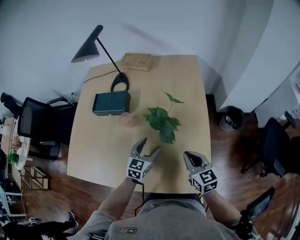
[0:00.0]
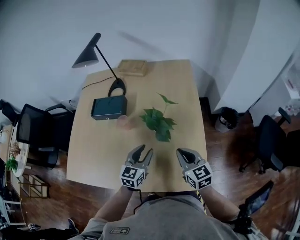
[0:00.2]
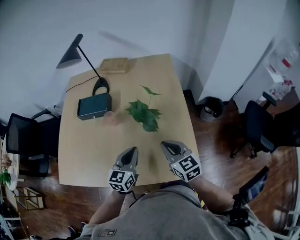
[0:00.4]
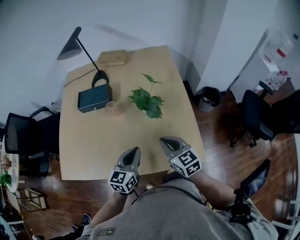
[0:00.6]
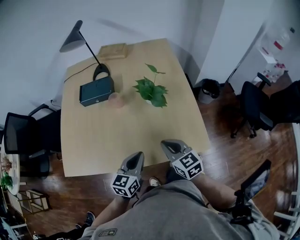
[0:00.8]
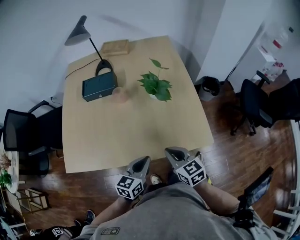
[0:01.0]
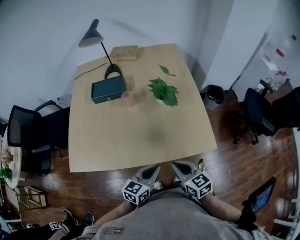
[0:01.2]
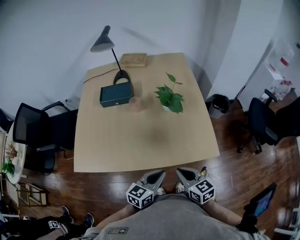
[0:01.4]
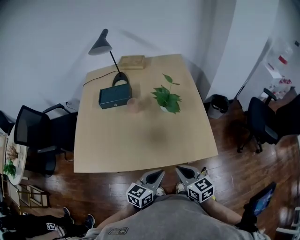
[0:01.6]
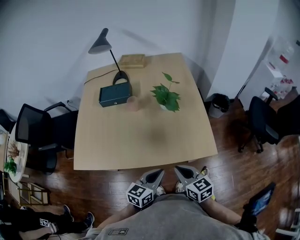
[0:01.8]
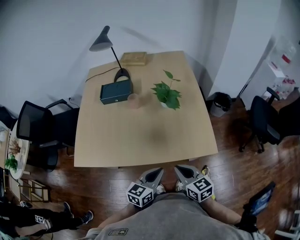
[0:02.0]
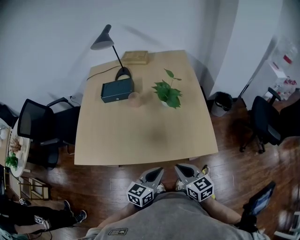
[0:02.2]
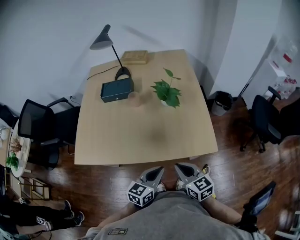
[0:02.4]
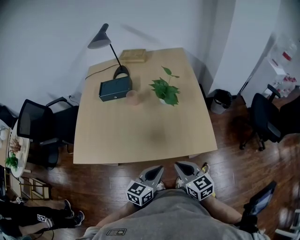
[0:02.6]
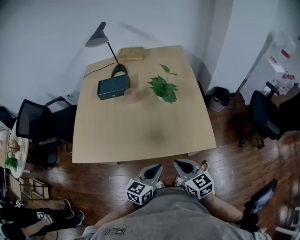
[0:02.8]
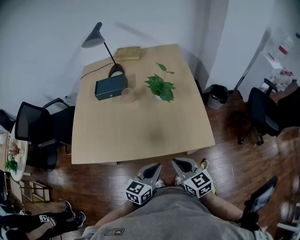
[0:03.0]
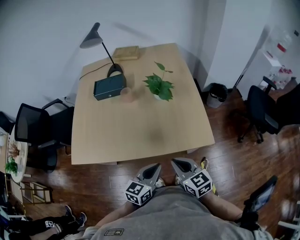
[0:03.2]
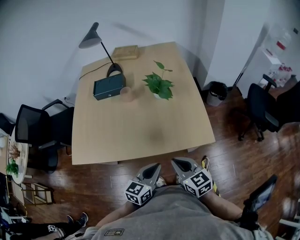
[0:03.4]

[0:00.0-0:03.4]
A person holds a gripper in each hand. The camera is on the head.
0:00.0 to 0:01.6: The right gripper heads backward and to the left, covering some 25 cm. The left gripper goes approximately 30 cm backward, rotates some 30 degrees, and closes.
0:01.6 to 0:03.4: The grippers move only a little.

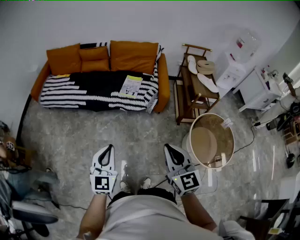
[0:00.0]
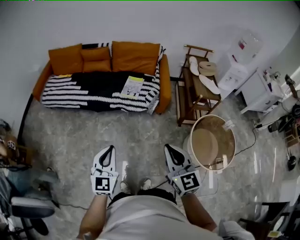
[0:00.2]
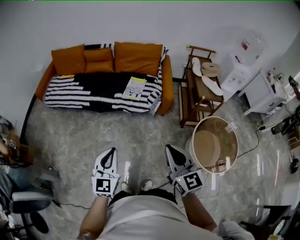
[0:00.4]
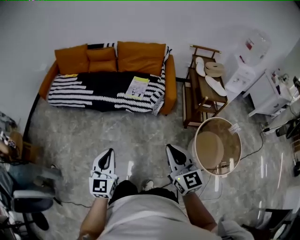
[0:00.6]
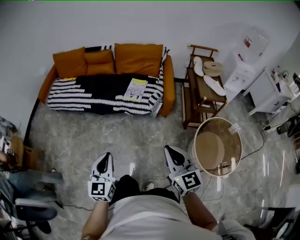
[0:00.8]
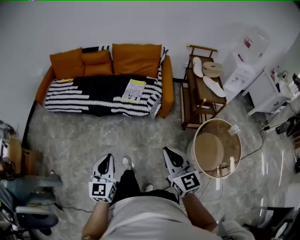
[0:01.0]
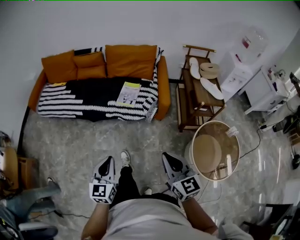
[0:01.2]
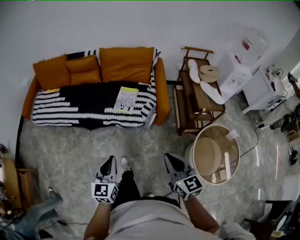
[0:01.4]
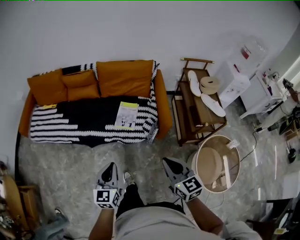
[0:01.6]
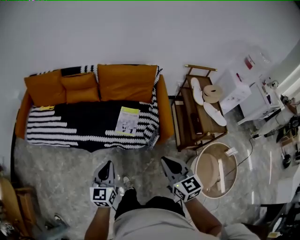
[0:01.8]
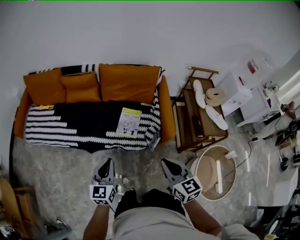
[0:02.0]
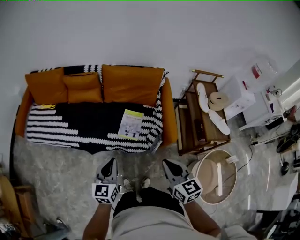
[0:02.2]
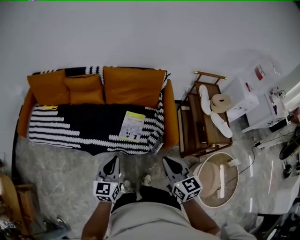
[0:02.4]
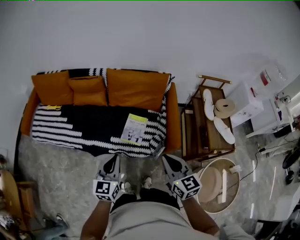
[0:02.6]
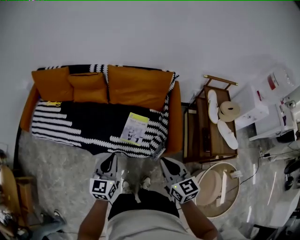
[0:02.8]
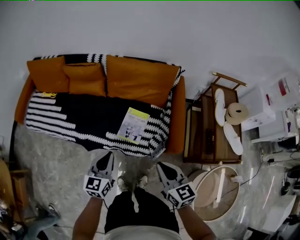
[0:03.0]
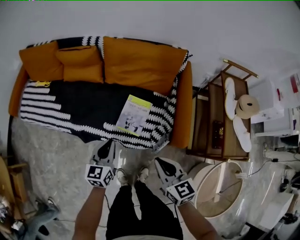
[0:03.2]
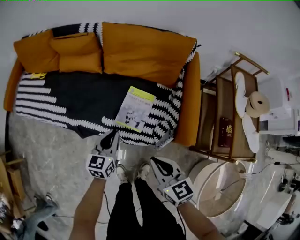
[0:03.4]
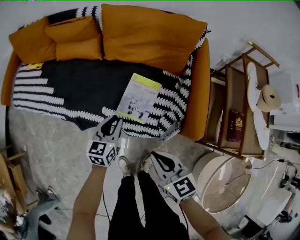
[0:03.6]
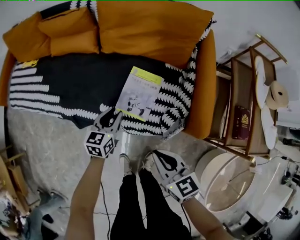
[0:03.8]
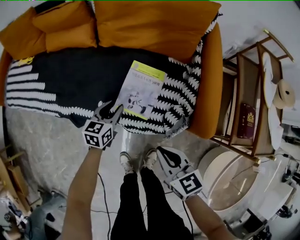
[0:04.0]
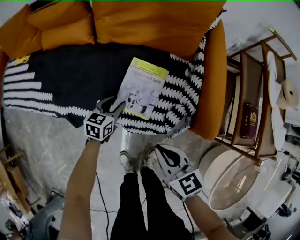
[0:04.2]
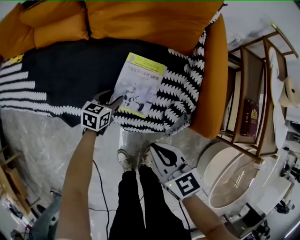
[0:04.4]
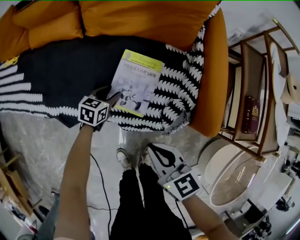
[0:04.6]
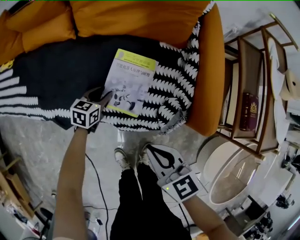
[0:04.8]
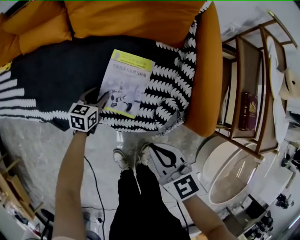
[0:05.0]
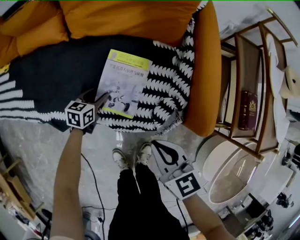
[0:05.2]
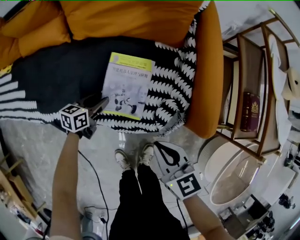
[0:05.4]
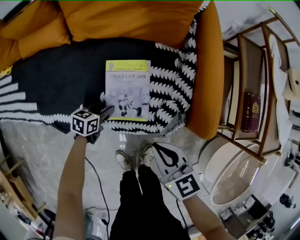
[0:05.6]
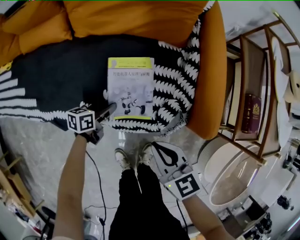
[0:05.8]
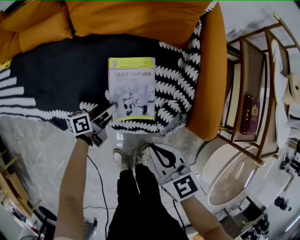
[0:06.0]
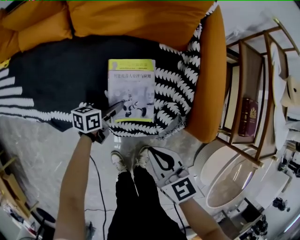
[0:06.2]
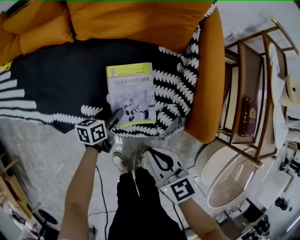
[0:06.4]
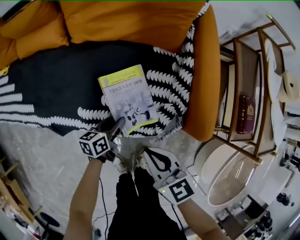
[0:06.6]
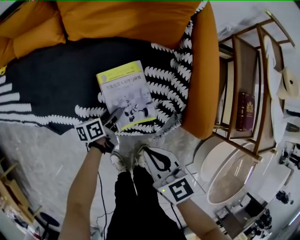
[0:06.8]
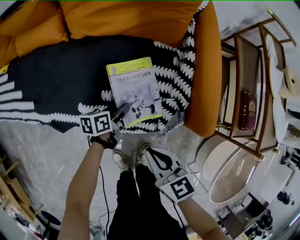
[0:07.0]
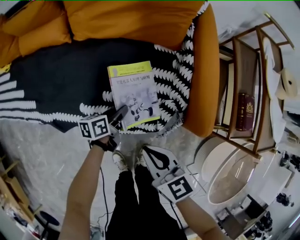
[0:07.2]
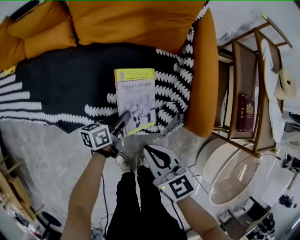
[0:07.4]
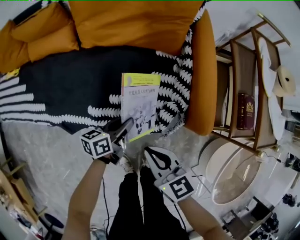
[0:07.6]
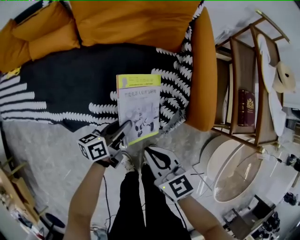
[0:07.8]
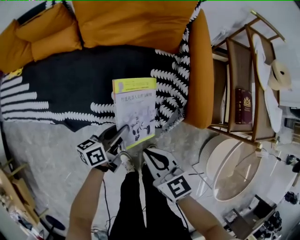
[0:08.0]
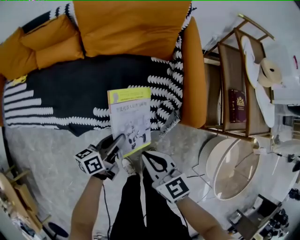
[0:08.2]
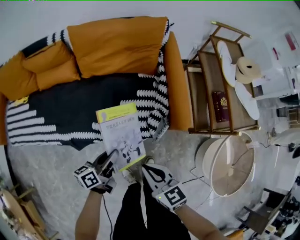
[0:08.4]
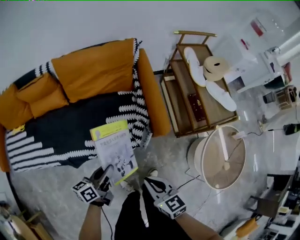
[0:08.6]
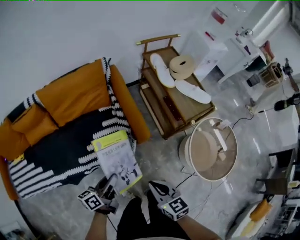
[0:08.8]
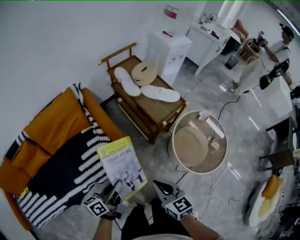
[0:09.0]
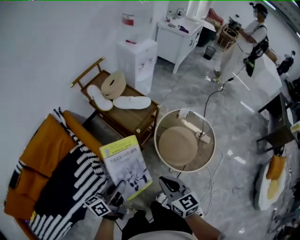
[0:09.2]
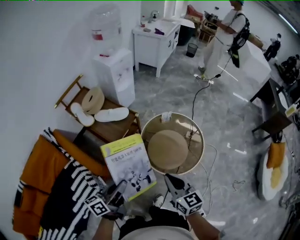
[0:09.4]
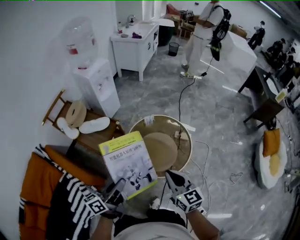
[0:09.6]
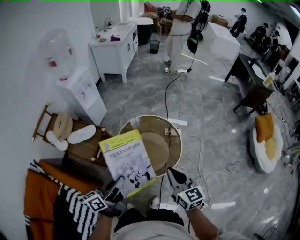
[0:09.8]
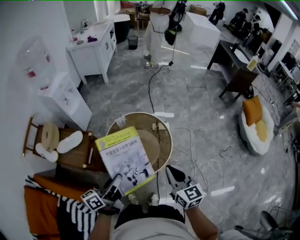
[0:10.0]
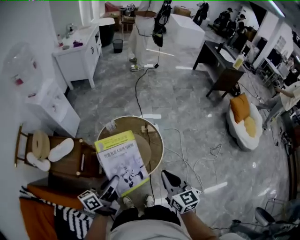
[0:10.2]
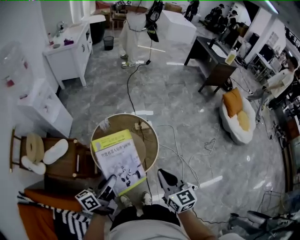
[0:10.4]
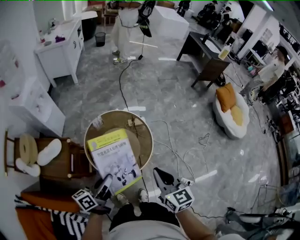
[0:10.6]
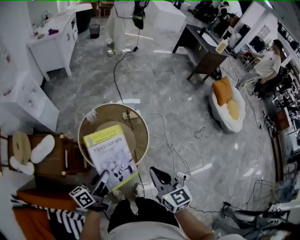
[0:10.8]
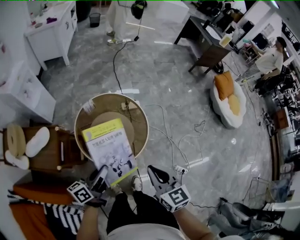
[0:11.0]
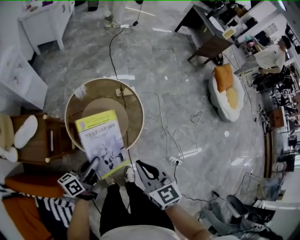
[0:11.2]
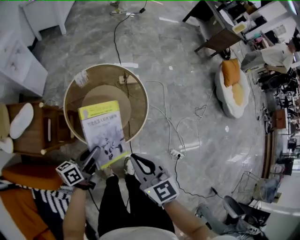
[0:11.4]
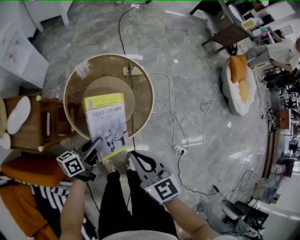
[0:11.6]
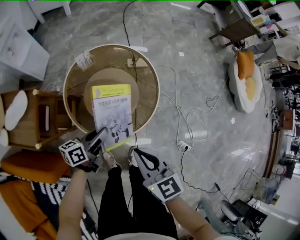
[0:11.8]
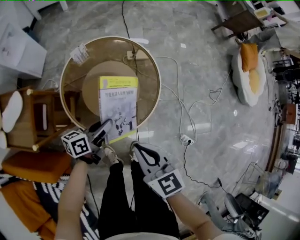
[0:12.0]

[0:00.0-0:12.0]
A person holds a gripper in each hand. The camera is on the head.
0:00.0 to 0:01.6: The two grippers go approximately 30 cm forward.
0:01.6 to 0:03.0: The grippers both shift forward by roughly 25 cm.
0:03.0 to 0:04.4: The right gripper is displaced downward by some 30 cm, while the left gripper shifts some 50 cm downward and forward, rotates approximately 30 degrees, and opens its fingers.
0:04.4 to 0:06.0: The left gripper changes its angle by roughly 40 degrees.
0:06.0 to 0:07.6: The right gripper changes place by some 5 cm, while the left gripper travels upward and to the right by roughly 10 cm.
0:07.6 to 0:09.0: The left gripper moves upward, approximately 35 cm, and rotates approximately 30 degrees; the right gripper shifts by some 40 cm, and turns by roughly 40 degrees.
0:09.0 to 0:10.4: The pair of grippers is taken some 50 cm. The left gripper changes its angle by some 50 degrees; the right gripper turns by about 60 degrees.
0:10.4 to 0:12.0: Both grippers travel together downward, about 25 cm. The left gripper changes its angle by roughly 20 degrees.

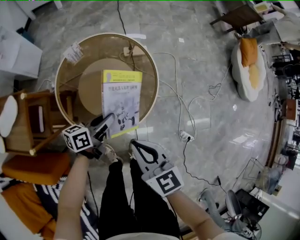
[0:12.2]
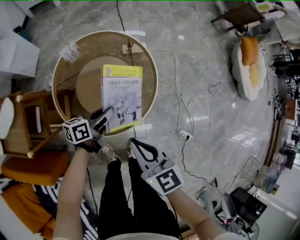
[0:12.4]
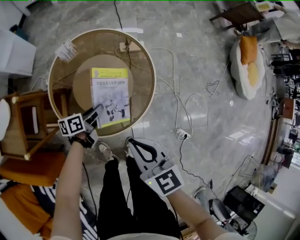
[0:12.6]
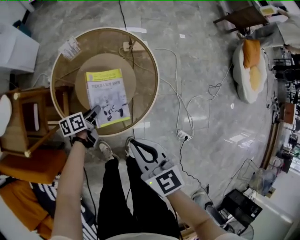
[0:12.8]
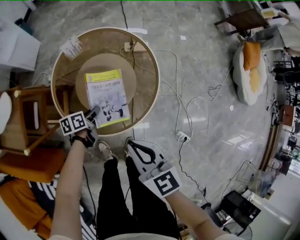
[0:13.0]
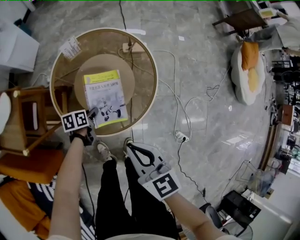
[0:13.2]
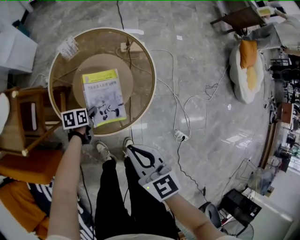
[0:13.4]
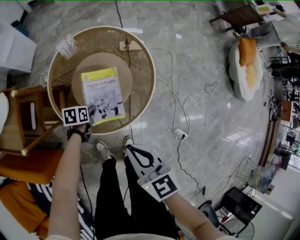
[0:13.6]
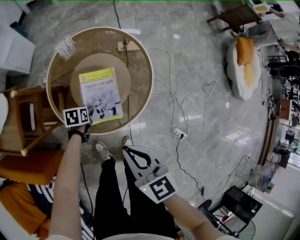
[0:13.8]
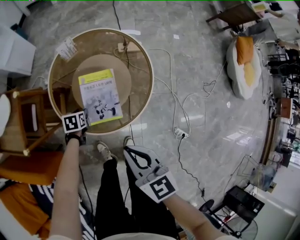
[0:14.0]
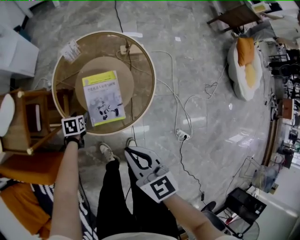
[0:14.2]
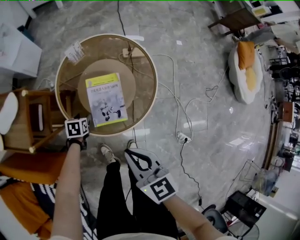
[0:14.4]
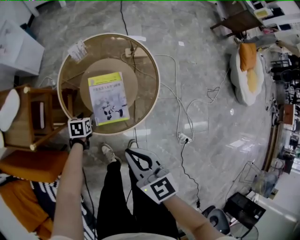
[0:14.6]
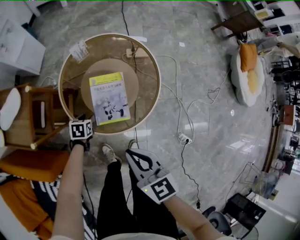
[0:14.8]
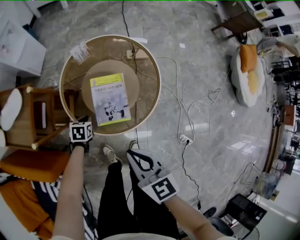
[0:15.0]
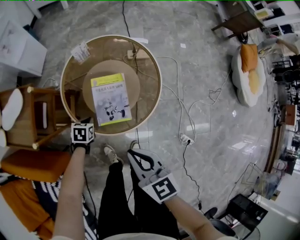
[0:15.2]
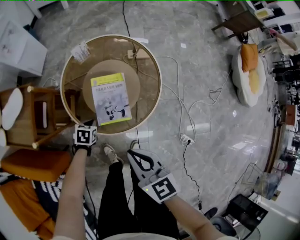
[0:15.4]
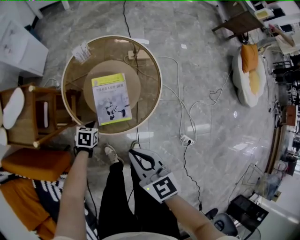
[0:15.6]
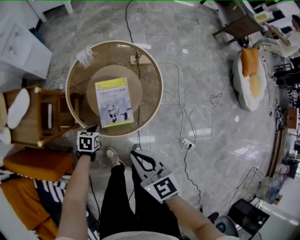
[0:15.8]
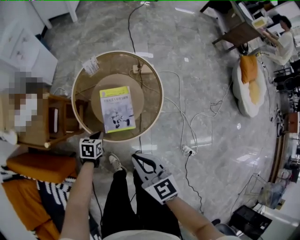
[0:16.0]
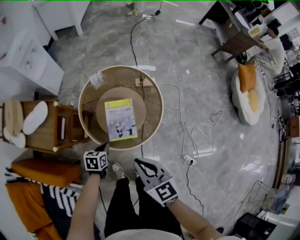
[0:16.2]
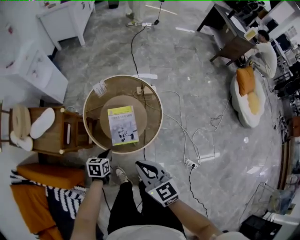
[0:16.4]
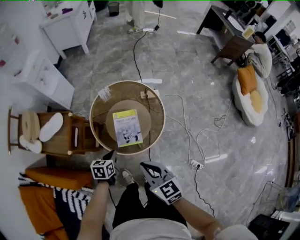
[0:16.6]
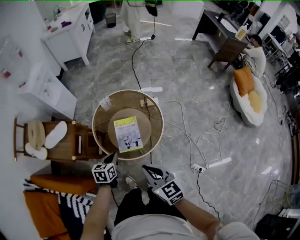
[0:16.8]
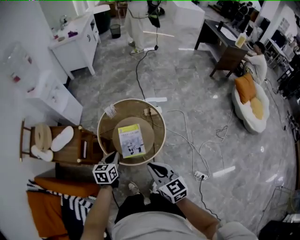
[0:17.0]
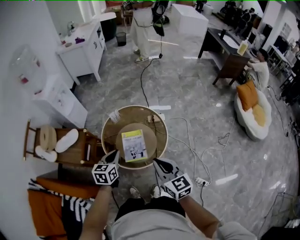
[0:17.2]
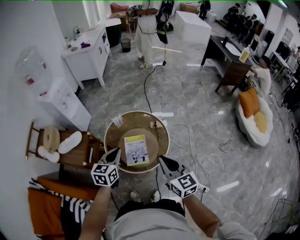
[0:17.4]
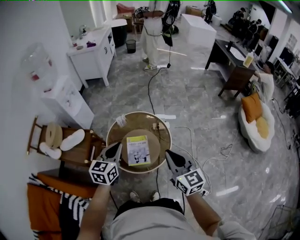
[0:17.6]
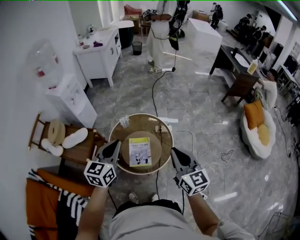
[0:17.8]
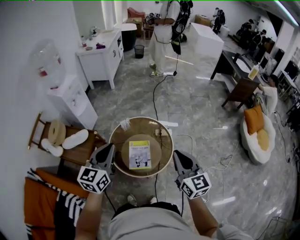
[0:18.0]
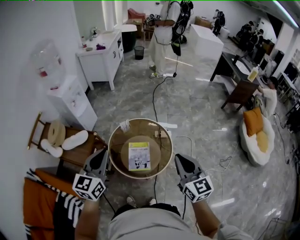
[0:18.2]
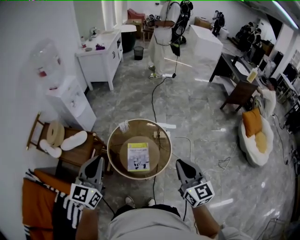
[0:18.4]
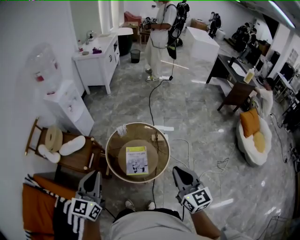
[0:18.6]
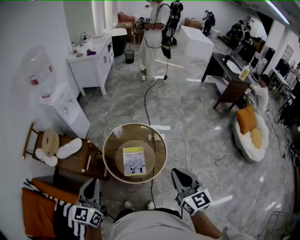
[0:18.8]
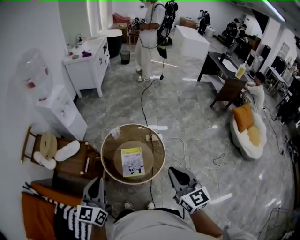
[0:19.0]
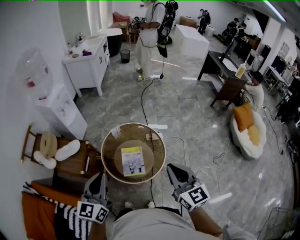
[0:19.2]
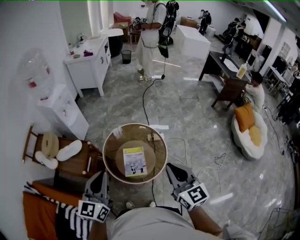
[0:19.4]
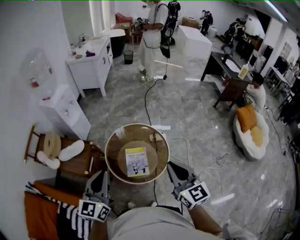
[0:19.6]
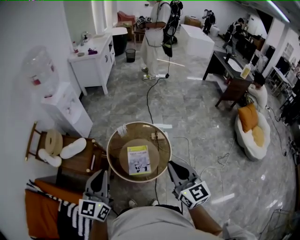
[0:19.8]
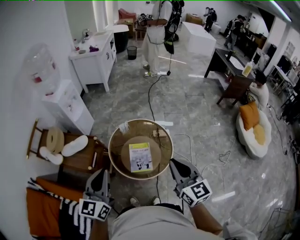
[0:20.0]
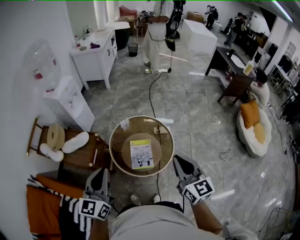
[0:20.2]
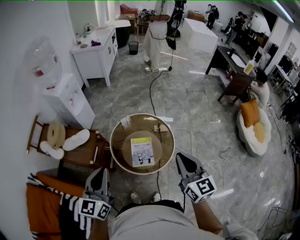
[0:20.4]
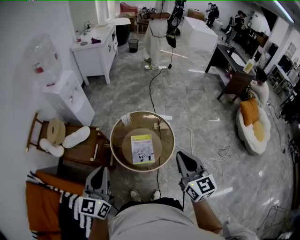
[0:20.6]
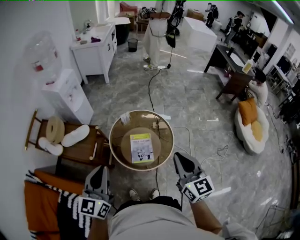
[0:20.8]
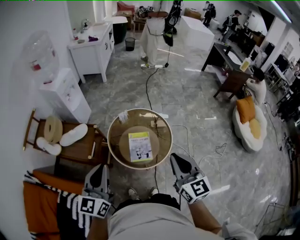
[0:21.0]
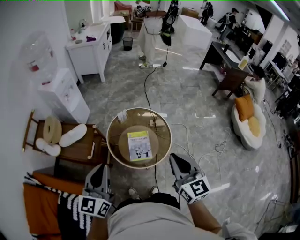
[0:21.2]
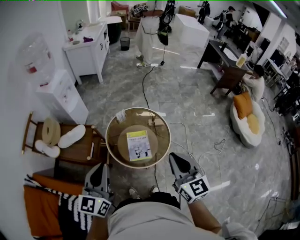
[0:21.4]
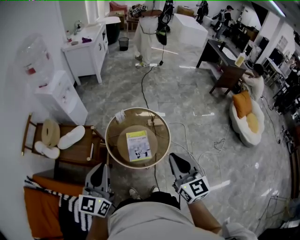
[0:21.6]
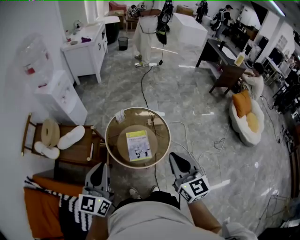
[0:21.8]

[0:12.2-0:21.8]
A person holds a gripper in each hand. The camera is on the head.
0:12.2 to 0:13.8: The left gripper is displaced downward and to the left by some 20 cm, and tilts its fingers roughly 50 degrees downward.
0:13.8 to 0:15.4: The left gripper goes about 5 cm backward, and closes up.
0:15.4 to 0:17.0: The right gripper moves upward, approximately 15 cm. The left gripper moves upward, some 35 cm, and tilts its fingers about 30 degrees upward.
0:17.0 to 0:18.6: The left gripper heads upward, covering about 25 cm, and angles its fingers upward, by approximately 30 degrees; the right gripper goes about 15 cm upward and to the right.
0:18.6 to 0:20.2: The right gripper ends up roughly 5 cm from where it was.
0:20.2 to 0:21.8: The right gripper shifts by roughly 5 cm.
